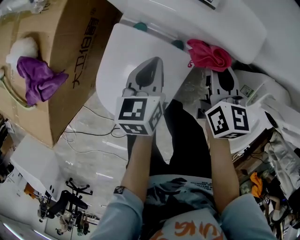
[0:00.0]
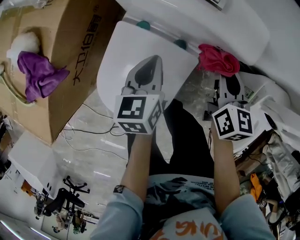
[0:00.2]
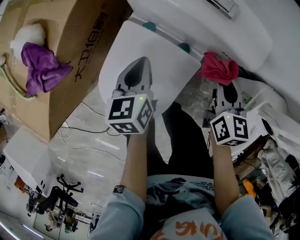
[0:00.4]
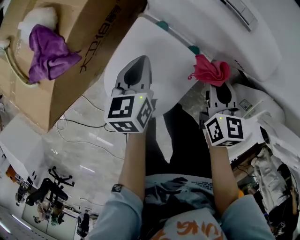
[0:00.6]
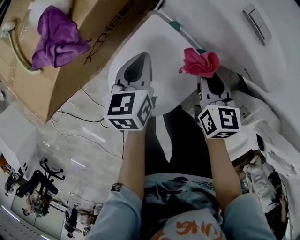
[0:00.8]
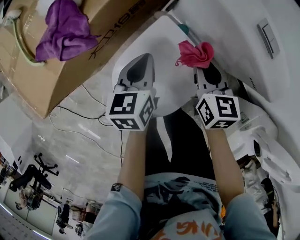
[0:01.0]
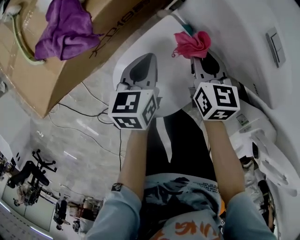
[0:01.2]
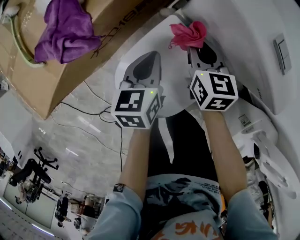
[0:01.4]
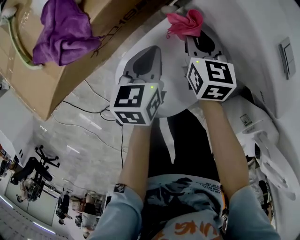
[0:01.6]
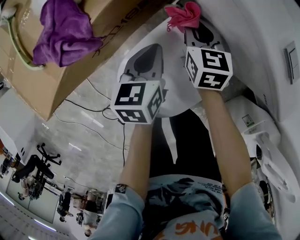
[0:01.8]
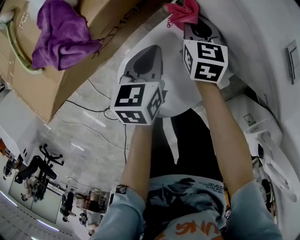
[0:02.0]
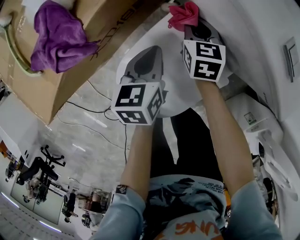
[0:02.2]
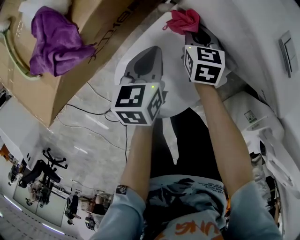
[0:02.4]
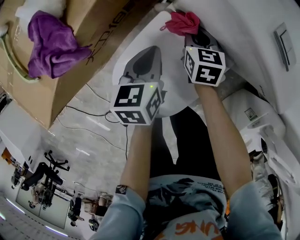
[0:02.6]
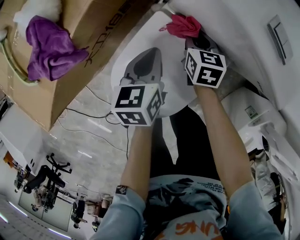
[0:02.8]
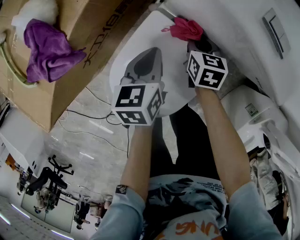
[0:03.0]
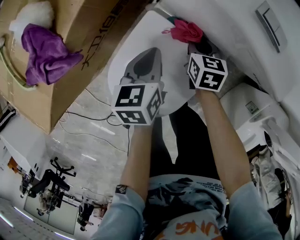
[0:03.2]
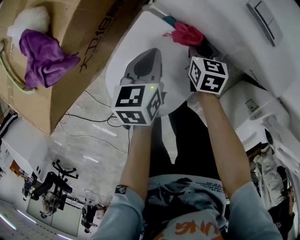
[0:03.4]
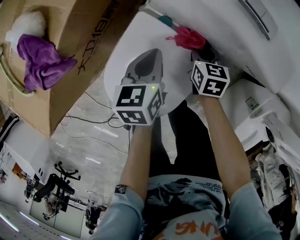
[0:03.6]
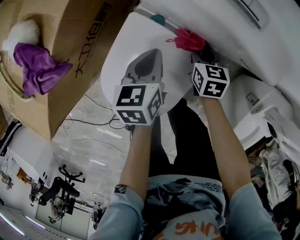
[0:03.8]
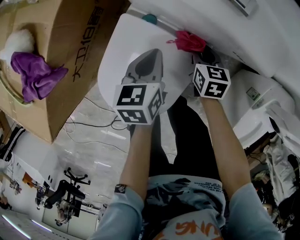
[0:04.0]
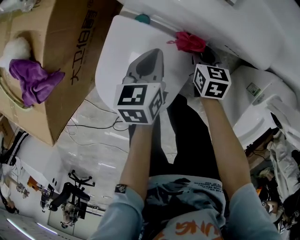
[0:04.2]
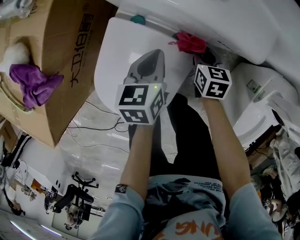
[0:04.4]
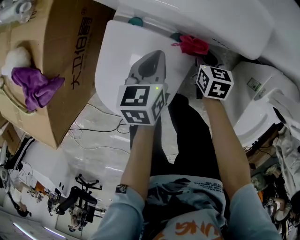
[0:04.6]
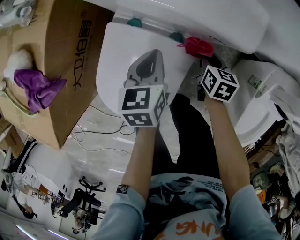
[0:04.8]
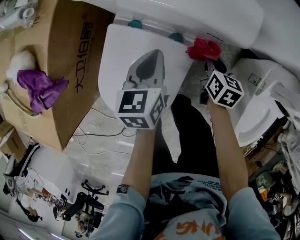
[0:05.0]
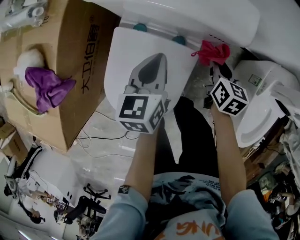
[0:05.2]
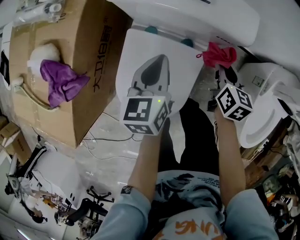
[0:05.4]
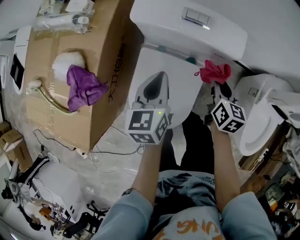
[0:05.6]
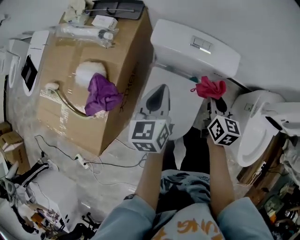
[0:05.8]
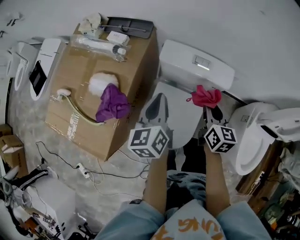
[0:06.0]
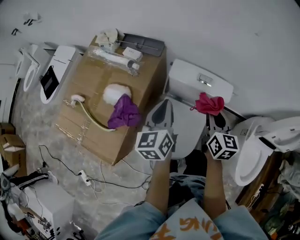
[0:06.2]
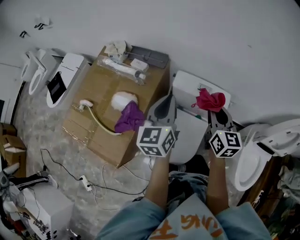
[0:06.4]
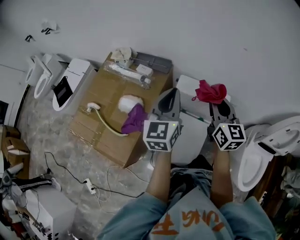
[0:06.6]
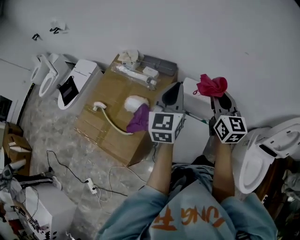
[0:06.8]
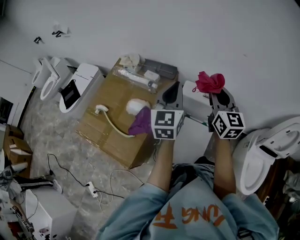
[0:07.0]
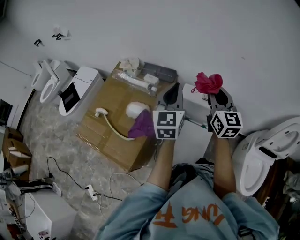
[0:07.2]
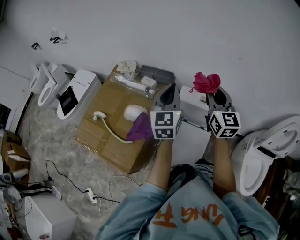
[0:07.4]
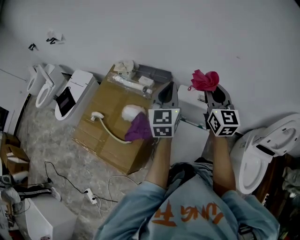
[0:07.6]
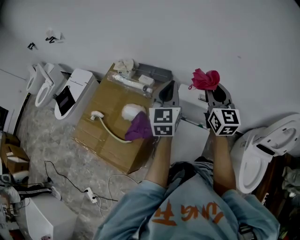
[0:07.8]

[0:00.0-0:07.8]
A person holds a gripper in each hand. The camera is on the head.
0:00.0 to 0:01.6: The left gripper shifts by about 15 cm, and rotates about 20 degrees, while the right gripper ends up some 30 cm from where it was, and rotates some 30 degrees.
0:01.6 to 0:03.2: The left gripper is displaced to the right by some 5 cm. The right gripper moves to the right and downward, approximately 15 cm.
0:03.2 to 0:04.6: The right gripper travels to the right and backward by some 20 cm, while the left gripper is displaced to the right by approximately 15 cm.
0:04.6 to 0:06.2: The right gripper heads upward, covering about 40 cm, and points its fingers some 30 degrees further upward; the left gripper heads upward and to the left, covering approximately 40 cm, and rotates some 30 degrees.
0:06.2 to 0:07.8: The grippers both shift upward by roughly 20 cm. The left gripper rotates about 30 degrees. Meanwhile the right gripper changes its angle by approximately 30 degrees.

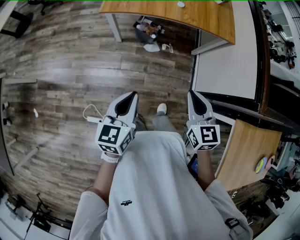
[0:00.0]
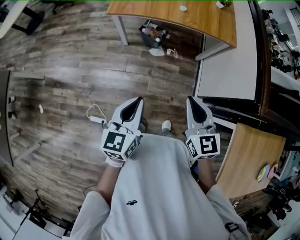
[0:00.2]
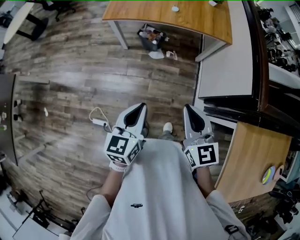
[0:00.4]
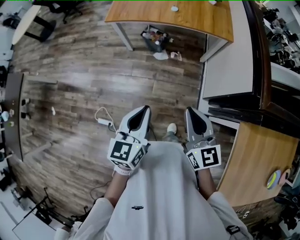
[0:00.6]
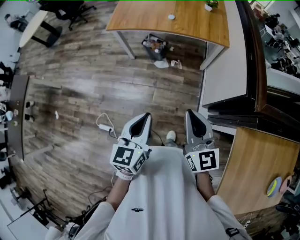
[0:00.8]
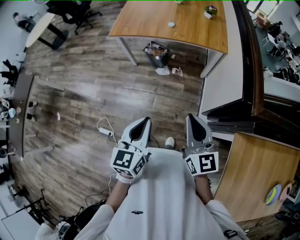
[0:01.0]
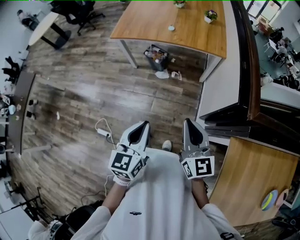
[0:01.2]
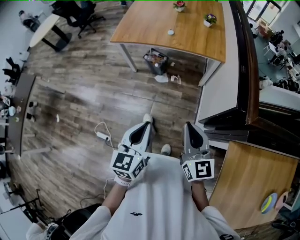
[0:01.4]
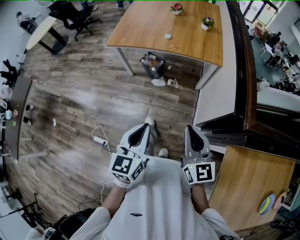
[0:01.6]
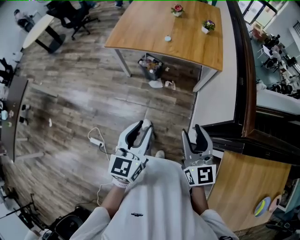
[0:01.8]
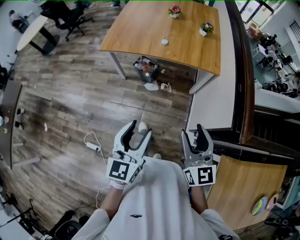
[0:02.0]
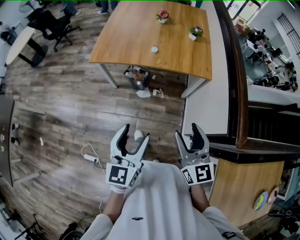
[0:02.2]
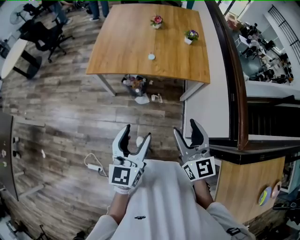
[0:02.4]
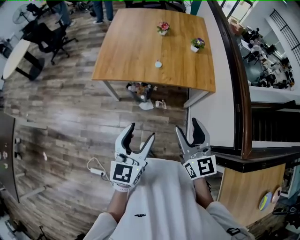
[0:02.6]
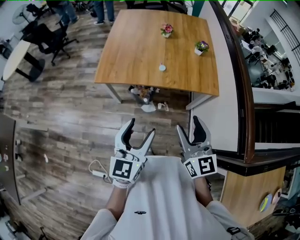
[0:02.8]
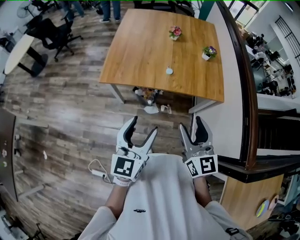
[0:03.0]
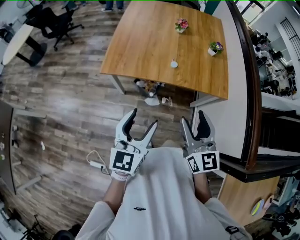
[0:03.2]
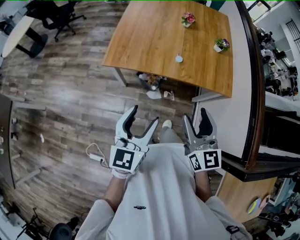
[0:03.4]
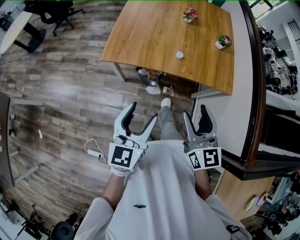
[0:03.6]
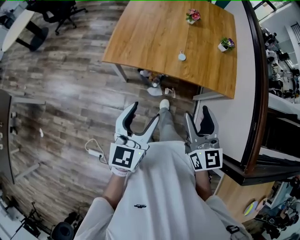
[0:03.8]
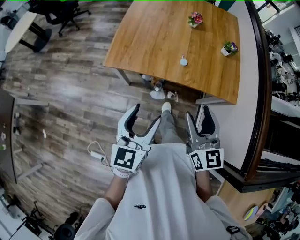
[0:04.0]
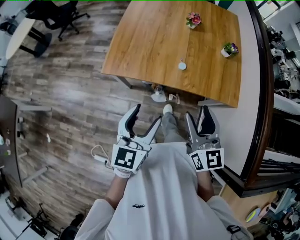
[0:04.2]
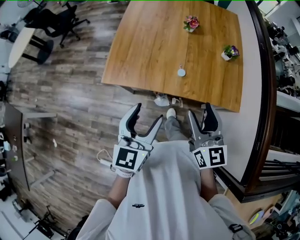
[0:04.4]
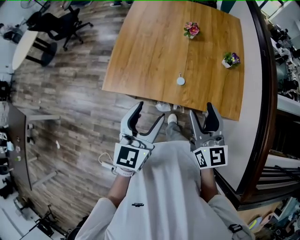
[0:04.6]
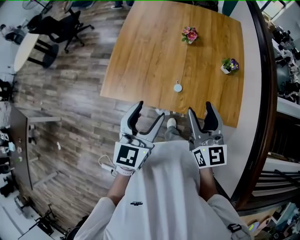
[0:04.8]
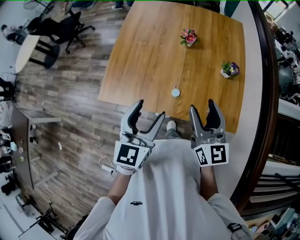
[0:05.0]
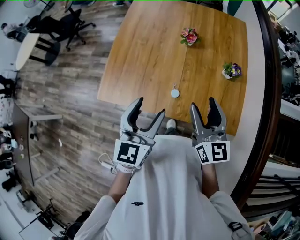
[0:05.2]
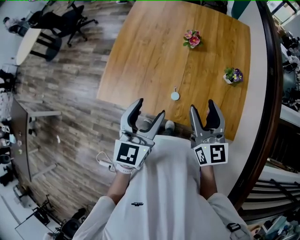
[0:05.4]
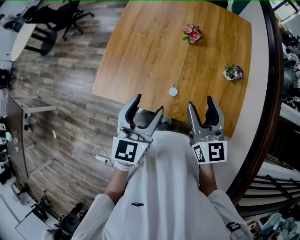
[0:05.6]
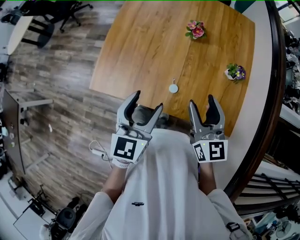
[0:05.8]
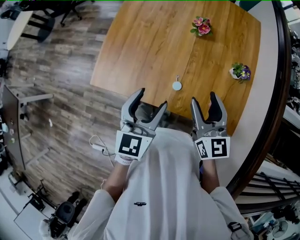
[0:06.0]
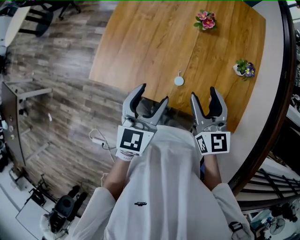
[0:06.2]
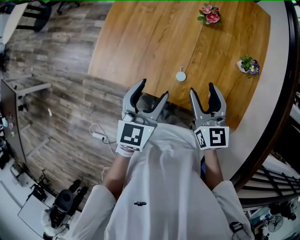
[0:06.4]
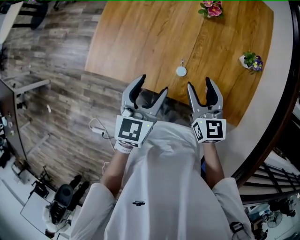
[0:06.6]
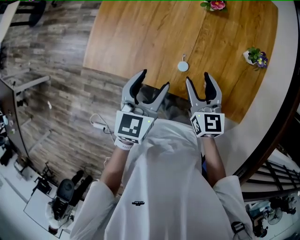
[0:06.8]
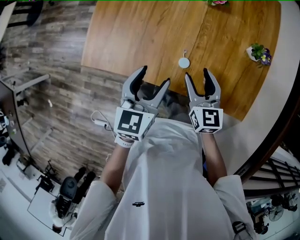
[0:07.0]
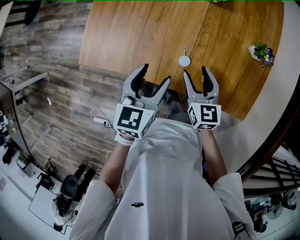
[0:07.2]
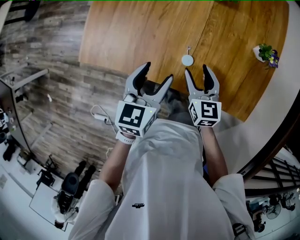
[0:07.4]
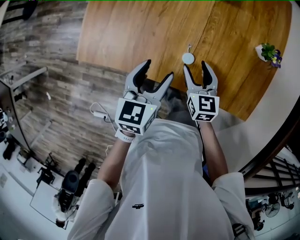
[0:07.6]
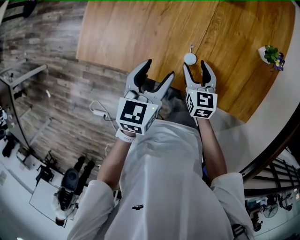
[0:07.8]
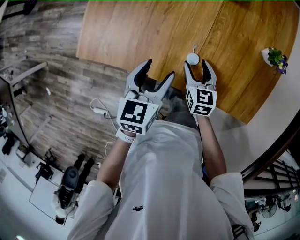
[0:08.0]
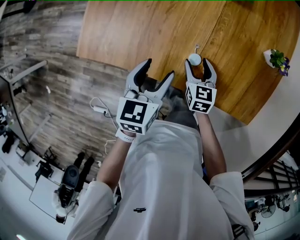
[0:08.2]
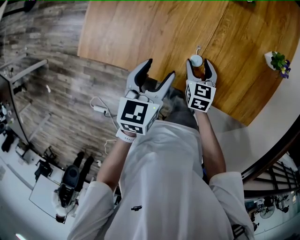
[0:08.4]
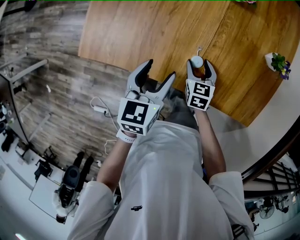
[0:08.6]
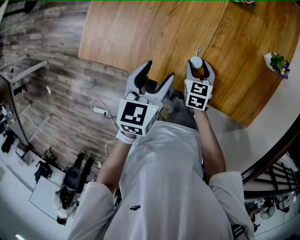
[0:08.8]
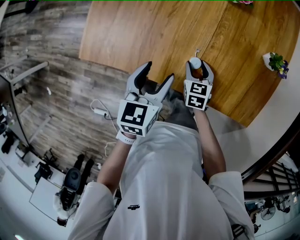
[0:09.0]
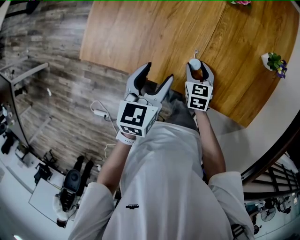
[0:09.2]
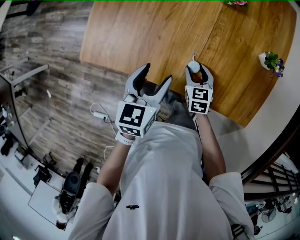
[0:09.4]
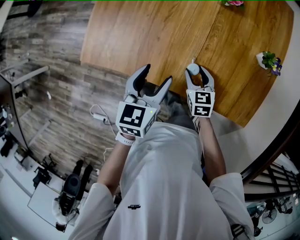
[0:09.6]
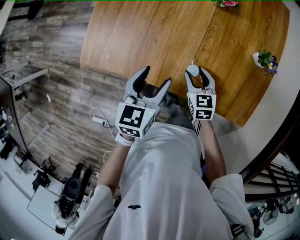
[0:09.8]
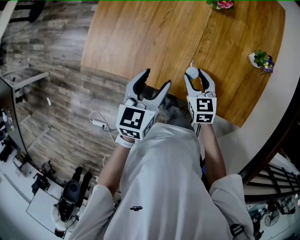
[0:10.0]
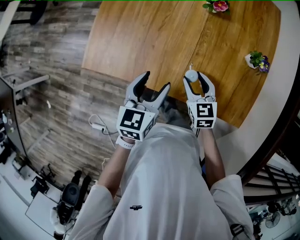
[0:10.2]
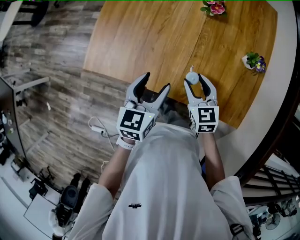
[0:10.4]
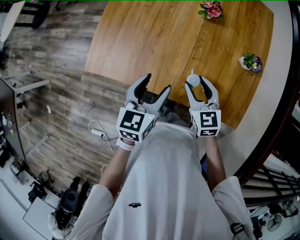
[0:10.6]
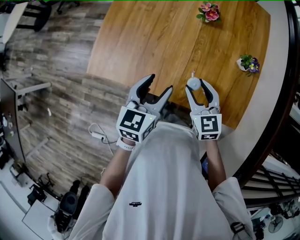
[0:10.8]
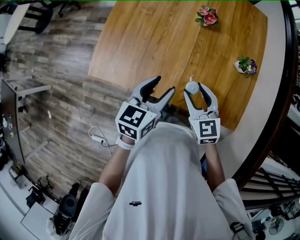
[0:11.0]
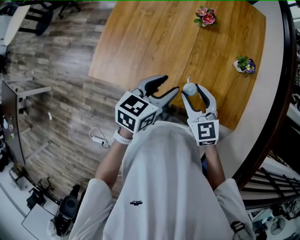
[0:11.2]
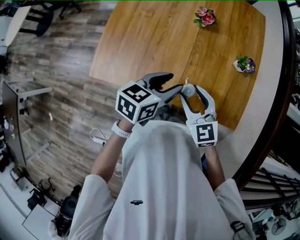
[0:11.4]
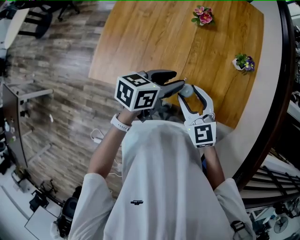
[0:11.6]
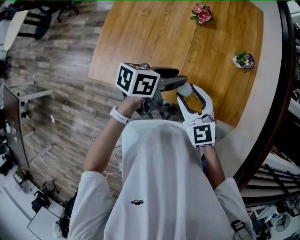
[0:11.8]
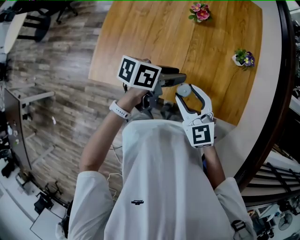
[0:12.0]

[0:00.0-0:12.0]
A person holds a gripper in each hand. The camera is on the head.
0:00.0 to 0:01.6: Both grippers travel together to the right and backward, some 25 cm.
0:01.6 to 0:03.0: The grippers both shift forward and to the left by about 30 cm. The right gripper opens its fingers. The left gripper opens.
0:03.0 to 0:04.4: The two grippers go some 20 cm forward.
0:04.4 to 0:06.0: Both grippers move forward, approximately 20 cm.
0:06.0 to 0:07.6: The left gripper travels downward by approximately 15 cm, and changes its angle by about 20 degrees, while the right gripper moves downward, some 25 cm, and turns by some 20 degrees.
0:07.6 to 0:09.0: The right gripper goes about 10 cm downward.
0:09.0 to 0:10.4: The right gripper travels upward by roughly 15 cm, and changes its angle by about 20 degrees, while the left gripper moves upward, about 5 cm.
0:10.4 to 0:12.0: The left gripper travels to the right by about 10 cm, rotates approximately 50 degrees, and closes its fingers, while the right gripper goes some 10 cm upward and backward.

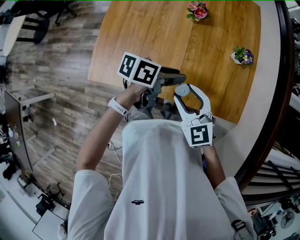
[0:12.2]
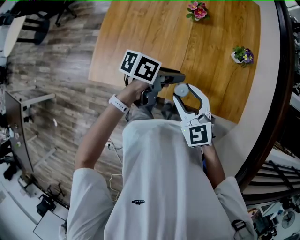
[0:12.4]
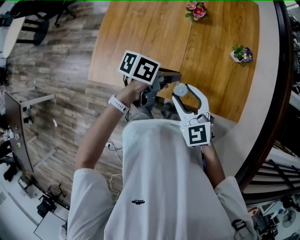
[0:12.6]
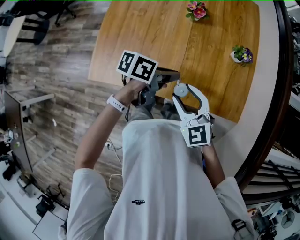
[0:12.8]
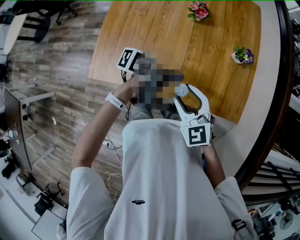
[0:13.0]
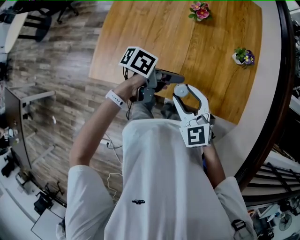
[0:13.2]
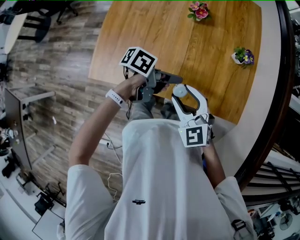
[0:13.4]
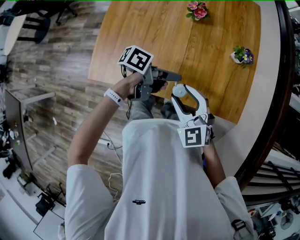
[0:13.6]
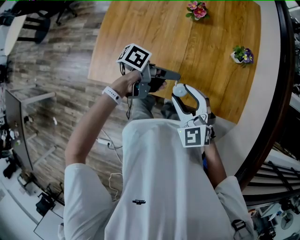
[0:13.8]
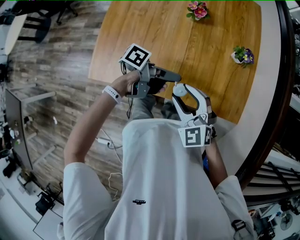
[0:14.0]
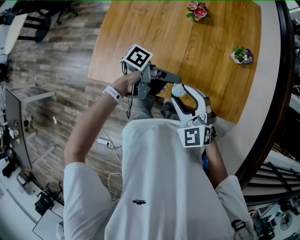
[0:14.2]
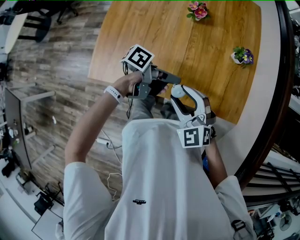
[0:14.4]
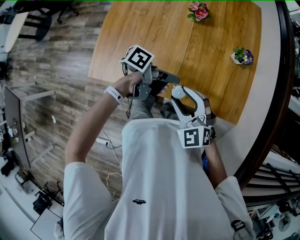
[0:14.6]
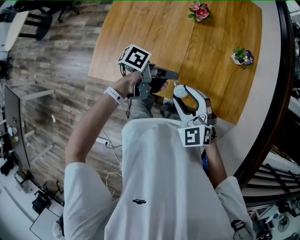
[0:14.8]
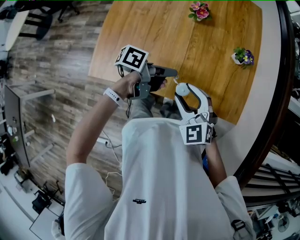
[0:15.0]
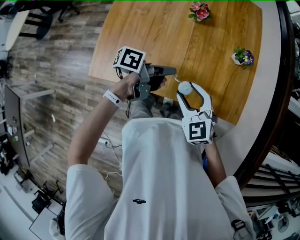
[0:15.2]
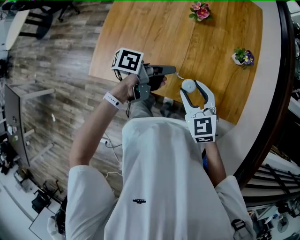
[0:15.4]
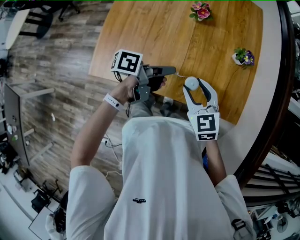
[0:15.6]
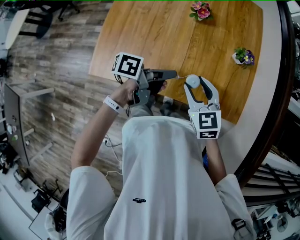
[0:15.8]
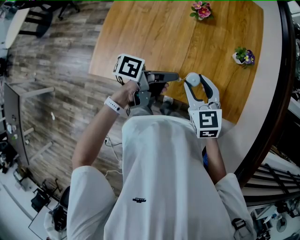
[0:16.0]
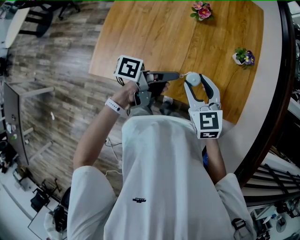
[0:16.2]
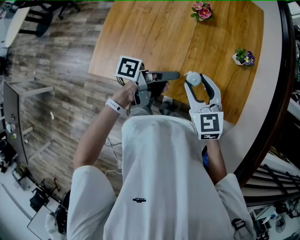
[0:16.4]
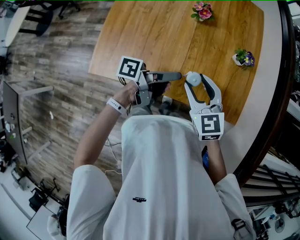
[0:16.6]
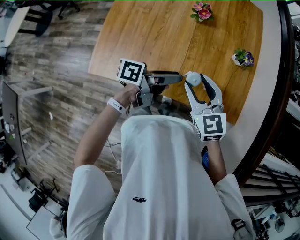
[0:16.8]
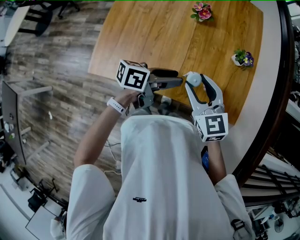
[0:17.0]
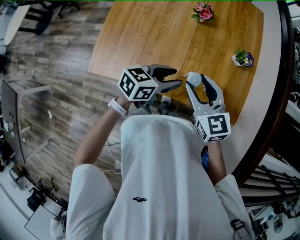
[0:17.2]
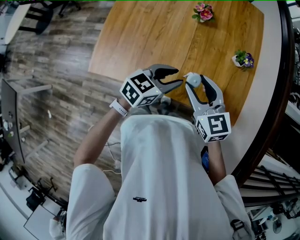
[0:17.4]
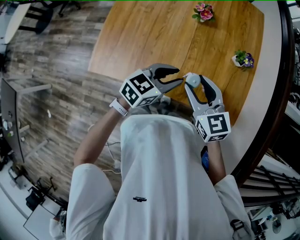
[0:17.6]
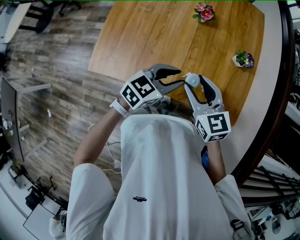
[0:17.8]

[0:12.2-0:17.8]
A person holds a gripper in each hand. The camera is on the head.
0:12.2 to 0:13.6: The left gripper changes its angle by roughly 20 degrees, and closes and opens again.
0:13.6 to 0:15.0: The left gripper closes up.
0:15.0 to 0:16.4: The left gripper opens up. Meanwhile the right gripper shifts approximately 5 cm forward, and swivels roughly 20 degrees.
0:16.4 to 0:17.8: The left gripper twists about 70 degrees clockwise, seen from behind.
